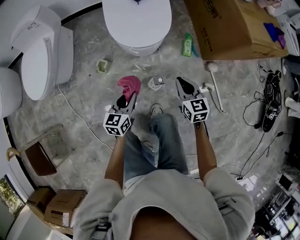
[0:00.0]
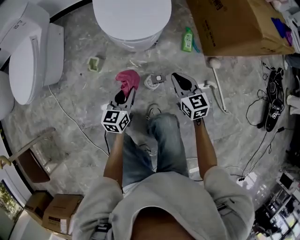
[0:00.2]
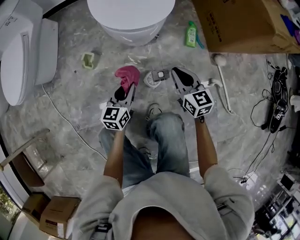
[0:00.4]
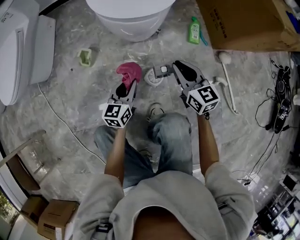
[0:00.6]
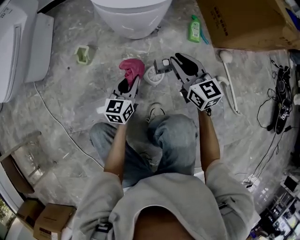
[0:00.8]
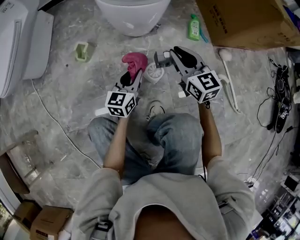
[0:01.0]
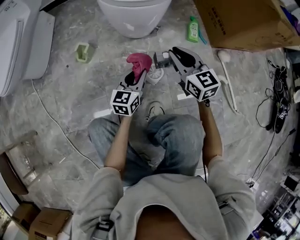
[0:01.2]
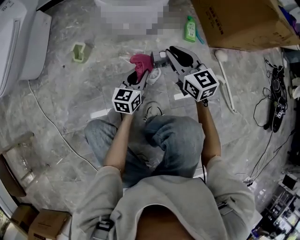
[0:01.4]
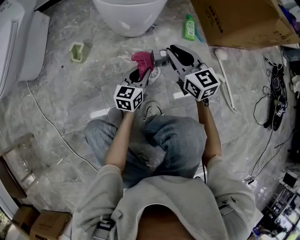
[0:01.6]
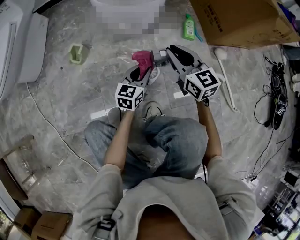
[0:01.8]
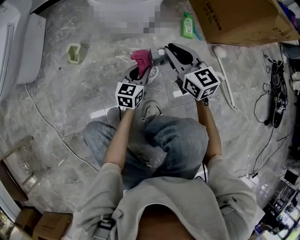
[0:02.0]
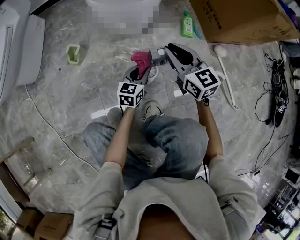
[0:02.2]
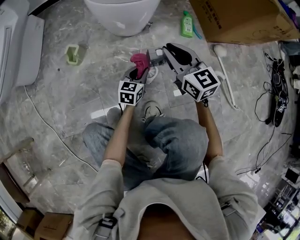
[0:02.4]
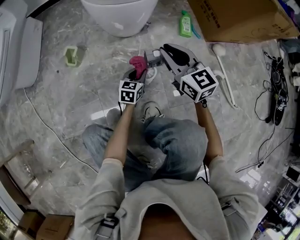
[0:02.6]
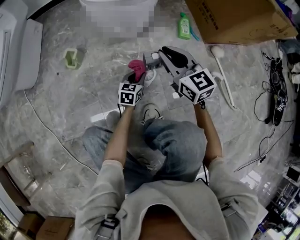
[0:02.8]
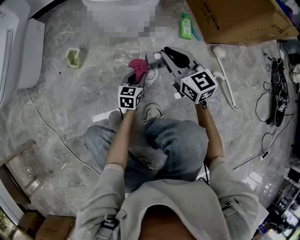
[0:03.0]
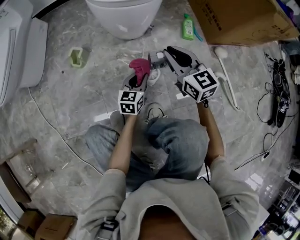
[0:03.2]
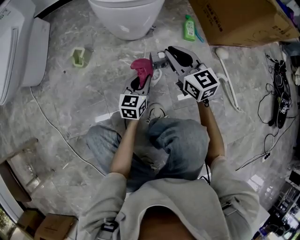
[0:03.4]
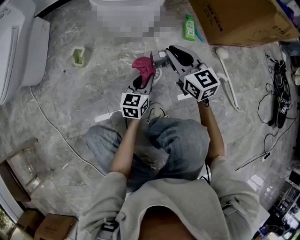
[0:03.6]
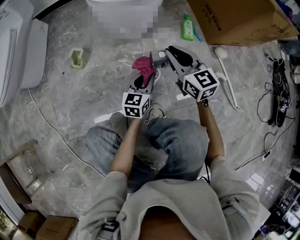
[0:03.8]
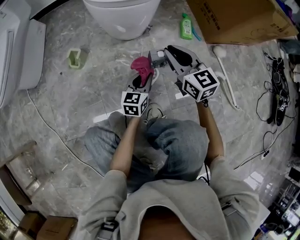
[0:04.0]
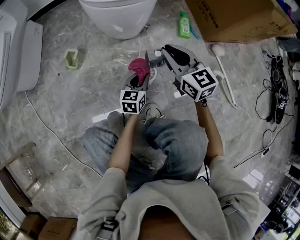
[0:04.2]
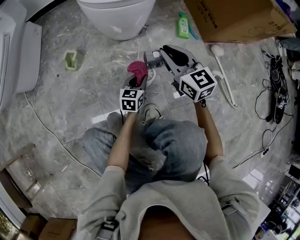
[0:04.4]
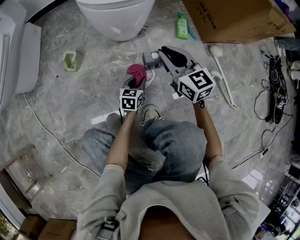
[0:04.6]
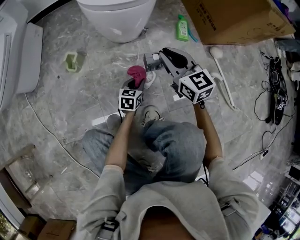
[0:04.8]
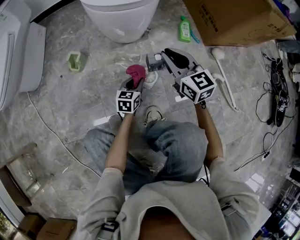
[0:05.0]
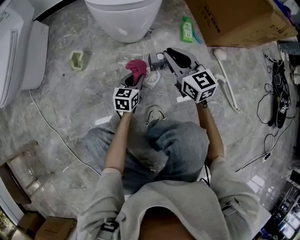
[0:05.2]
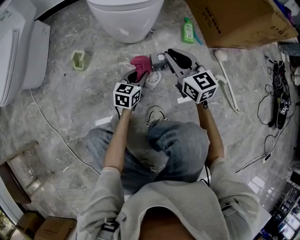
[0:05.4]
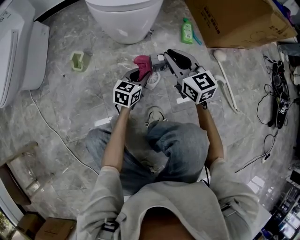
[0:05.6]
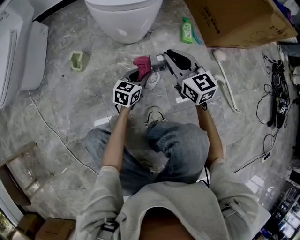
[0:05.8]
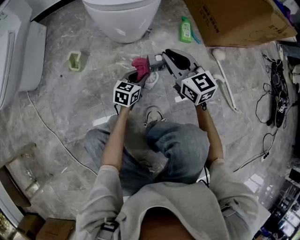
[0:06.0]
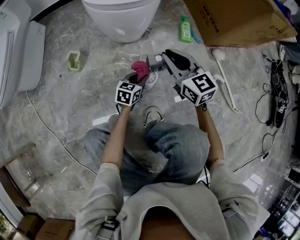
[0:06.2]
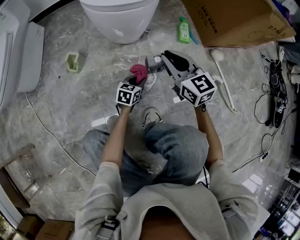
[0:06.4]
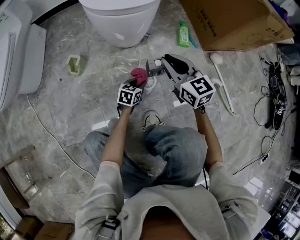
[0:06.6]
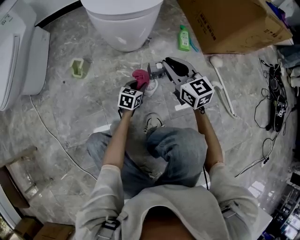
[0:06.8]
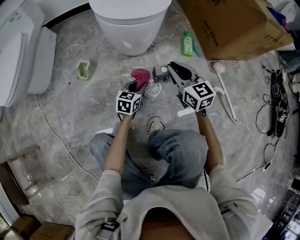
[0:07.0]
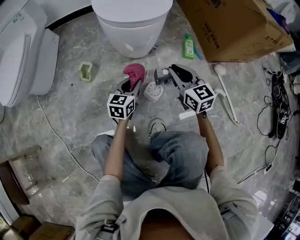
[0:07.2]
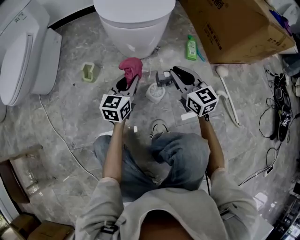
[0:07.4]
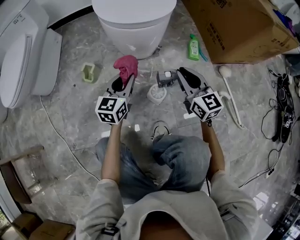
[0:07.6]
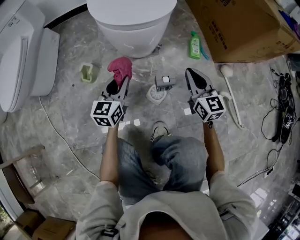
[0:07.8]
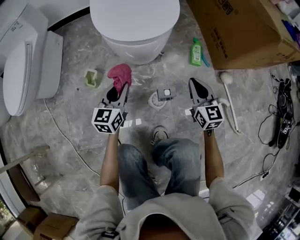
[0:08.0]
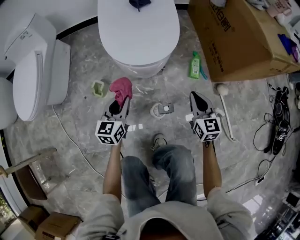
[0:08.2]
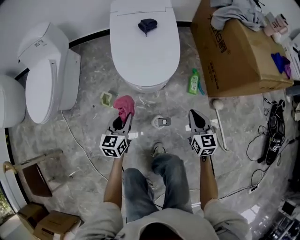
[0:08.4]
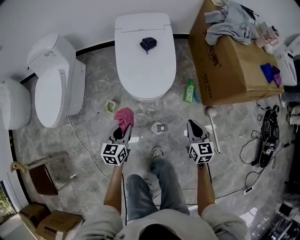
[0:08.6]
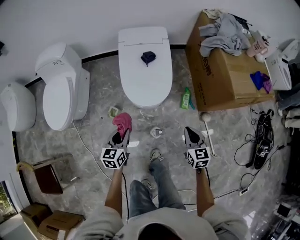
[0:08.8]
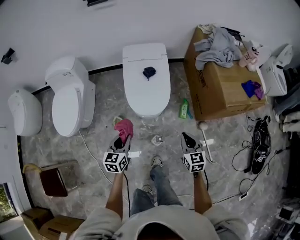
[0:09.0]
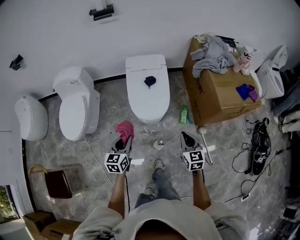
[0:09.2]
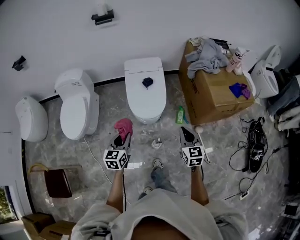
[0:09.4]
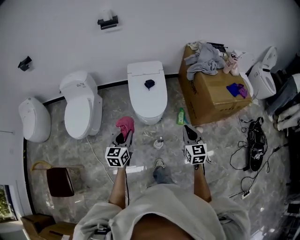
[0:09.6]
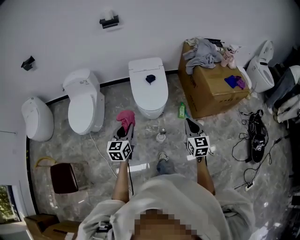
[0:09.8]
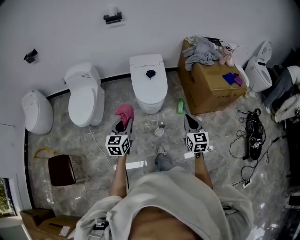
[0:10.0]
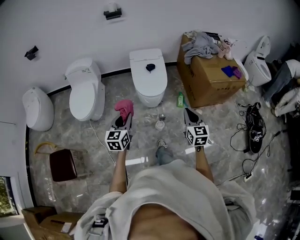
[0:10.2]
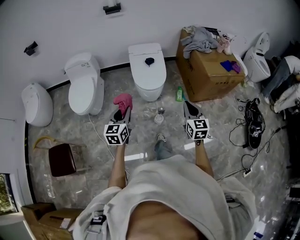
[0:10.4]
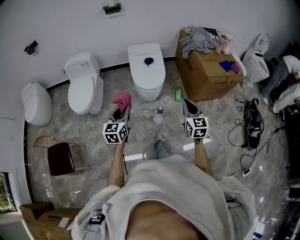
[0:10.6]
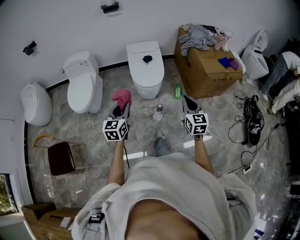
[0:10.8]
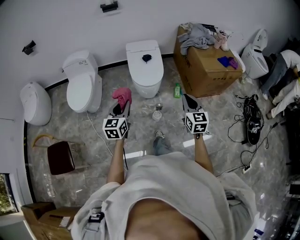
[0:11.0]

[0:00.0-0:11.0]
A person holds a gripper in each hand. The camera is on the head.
0:00.0 to 0:01.6: The left gripper is displaced downward by approximately 25 cm, while the right gripper heads downward, covering some 15 cm.
0:03.2 to 0:04.8: The left gripper travels downward by roughly 10 cm.
0:04.8 to 0:06.2: The left gripper goes upward and returns, about 10 cm each way.
0:06.2 to 0:07.8: The left gripper goes about 20 cm upward and to the left, and changes its angle by approximately 30 degrees, while the right gripper shifts approximately 5 cm to the right.
0:07.8 to 0:09.4: Both grippers travel together upward, about 50 cm.
0:09.4 to 0:11.0: Both grippers travel together backward and upward, some 20 cm.

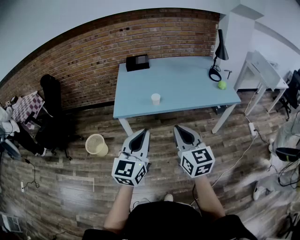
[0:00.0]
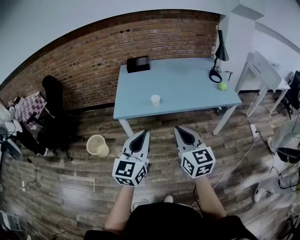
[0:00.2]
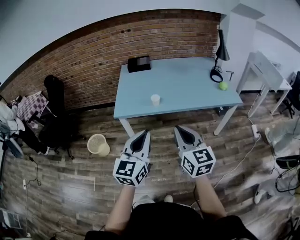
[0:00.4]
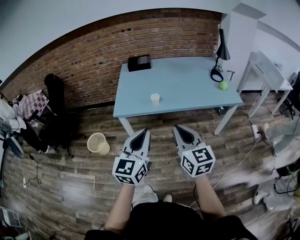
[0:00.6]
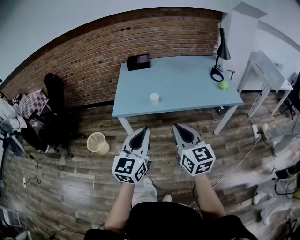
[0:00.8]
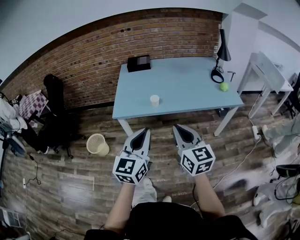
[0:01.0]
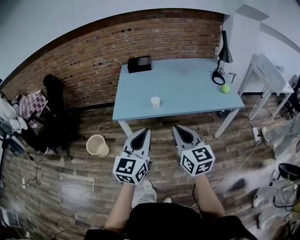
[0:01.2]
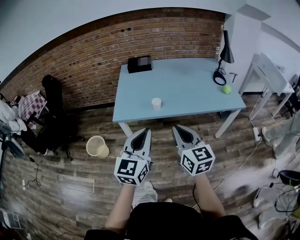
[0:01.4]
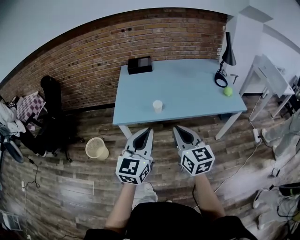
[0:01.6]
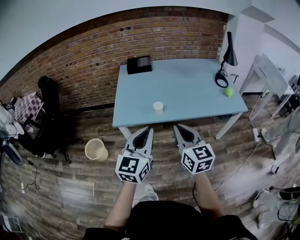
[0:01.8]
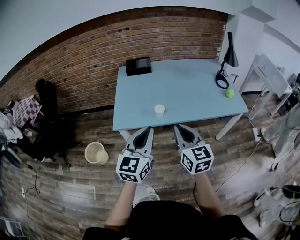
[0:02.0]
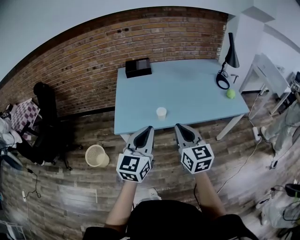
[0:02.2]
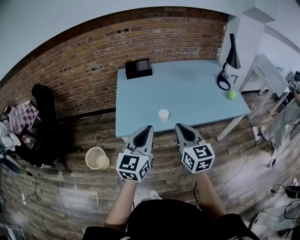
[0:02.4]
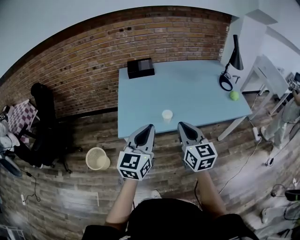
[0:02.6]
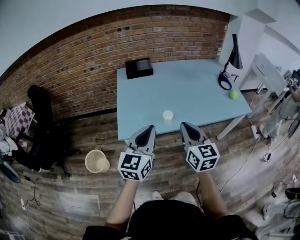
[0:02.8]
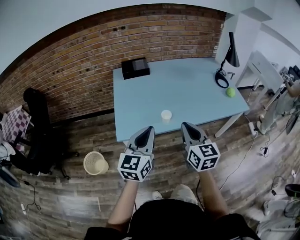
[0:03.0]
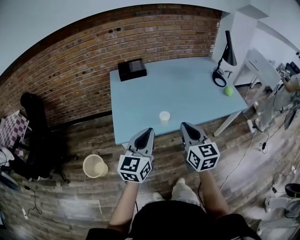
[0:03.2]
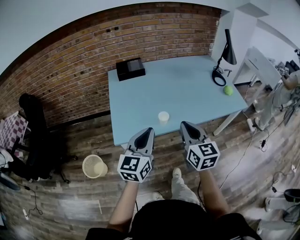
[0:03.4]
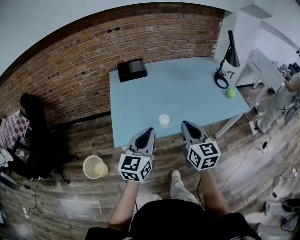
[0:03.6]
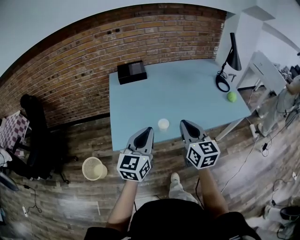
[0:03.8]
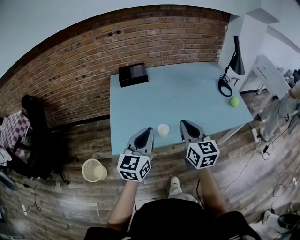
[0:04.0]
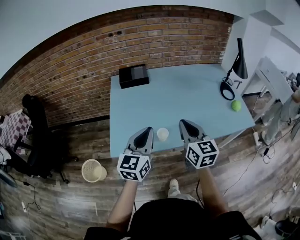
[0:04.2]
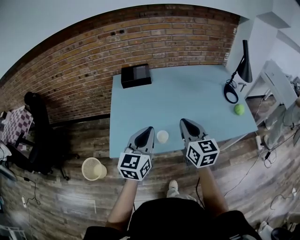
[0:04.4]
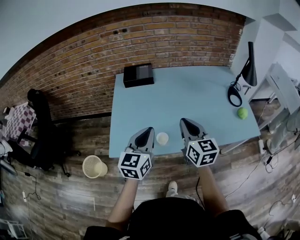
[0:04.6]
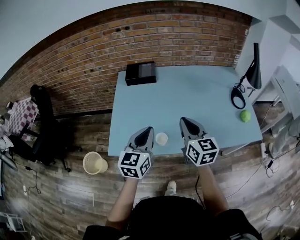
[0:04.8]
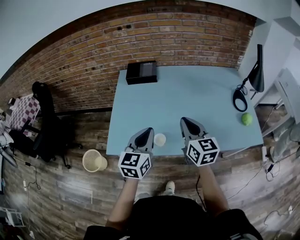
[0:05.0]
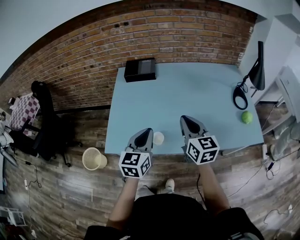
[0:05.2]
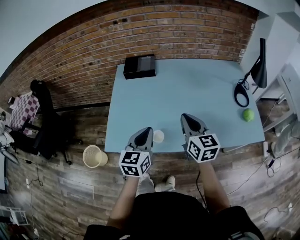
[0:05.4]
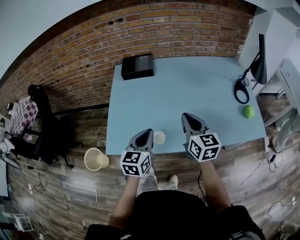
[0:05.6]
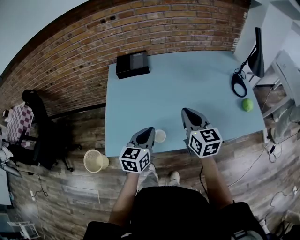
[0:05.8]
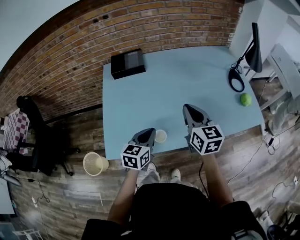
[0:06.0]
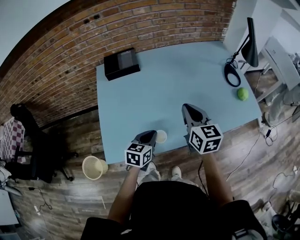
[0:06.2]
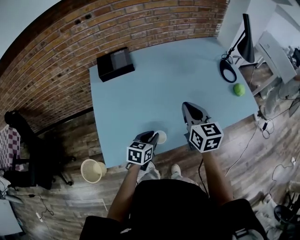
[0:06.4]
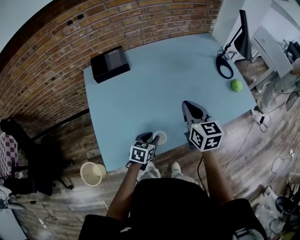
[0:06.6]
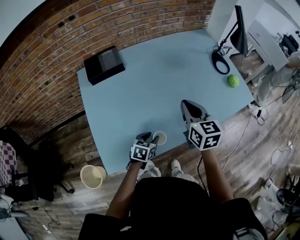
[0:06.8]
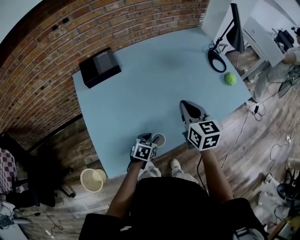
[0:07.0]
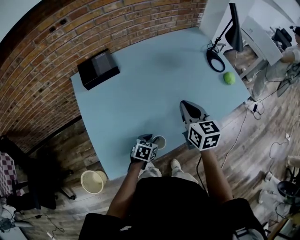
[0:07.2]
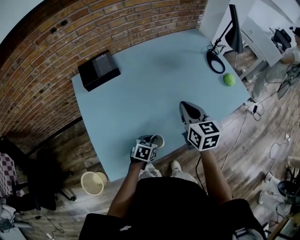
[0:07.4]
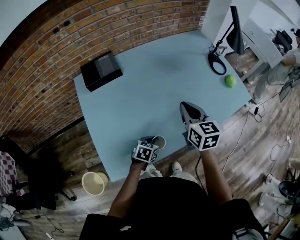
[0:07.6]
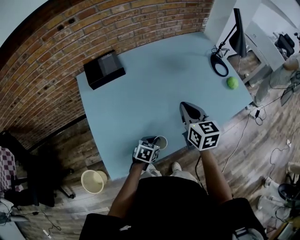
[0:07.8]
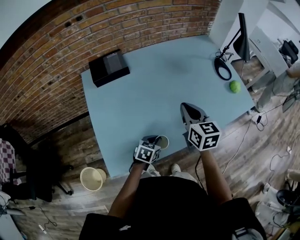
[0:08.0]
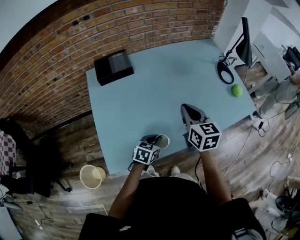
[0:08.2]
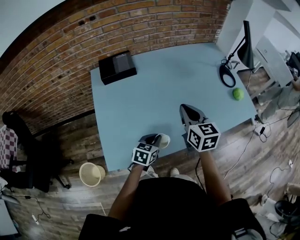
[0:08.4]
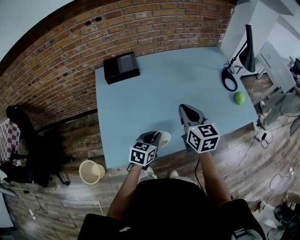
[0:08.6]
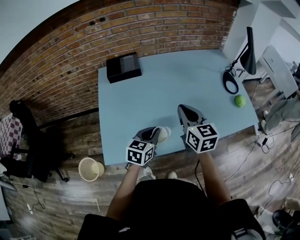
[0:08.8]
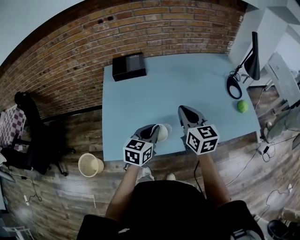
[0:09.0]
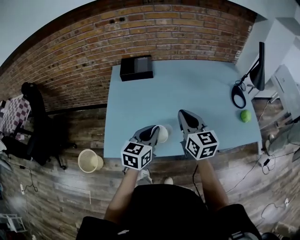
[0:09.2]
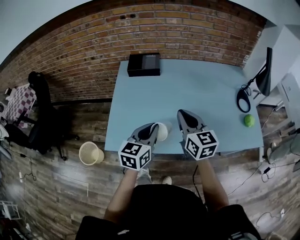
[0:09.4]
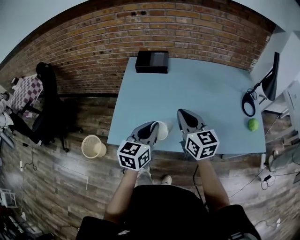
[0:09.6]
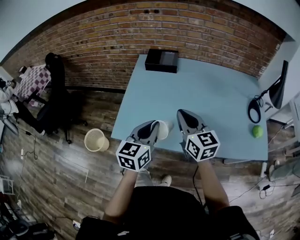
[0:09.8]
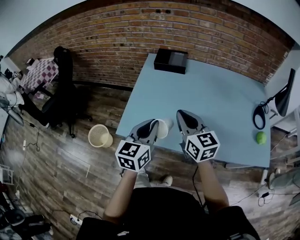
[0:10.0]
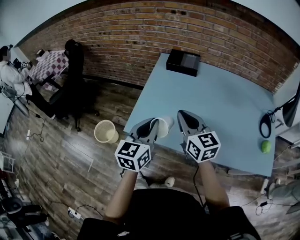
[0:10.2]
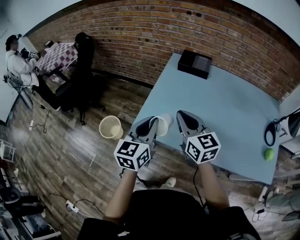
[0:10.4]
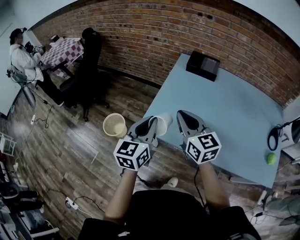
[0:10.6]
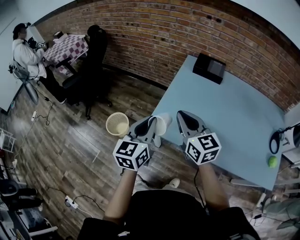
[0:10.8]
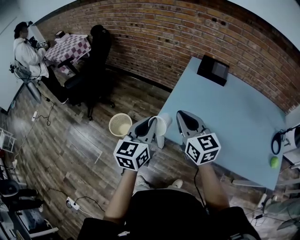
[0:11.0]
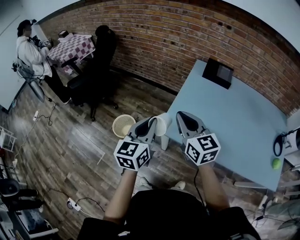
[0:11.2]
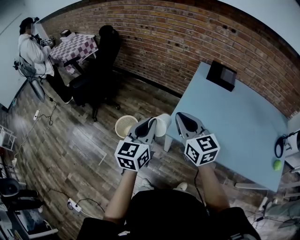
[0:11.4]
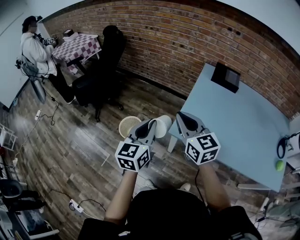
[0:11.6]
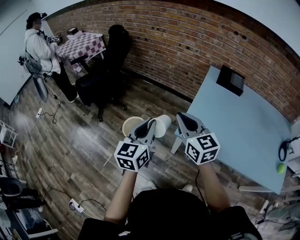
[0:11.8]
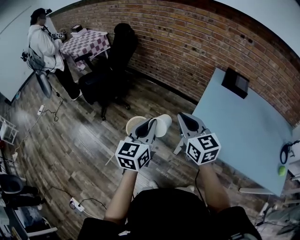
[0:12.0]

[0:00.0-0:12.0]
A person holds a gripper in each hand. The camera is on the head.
0:00.0 to 0:01.6: The grippers both shift forward by some 10 cm.
0:01.6 to 0:03.0: Both grippers travel together forward and to the left, about 20 cm.
0:03.0 to 0:04.4: Both grippers travel together forward, roughly 15 cm.
0:04.4 to 0:06.0: The left gripper goes approximately 15 cm downward and forward, and turns by roughly 20 degrees. The right gripper travels forward by approximately 10 cm.
0:06.0 to 0:07.6: The right gripper ends up approximately 5 cm from where it was, while the left gripper shifts approximately 20 cm downward, rotates some 40 degrees, and opens, then closes again.
0:07.6 to 0:09.0: The right gripper is displaced upward by about 5 cm, and rotates approximately 20 degrees. The left gripper goes some 20 cm upward, and changes its angle by about 40 degrees.
0:09.0 to 0:10.4: The right gripper shifts by roughly 20 cm, and swivels roughly 40 degrees, while the left gripper changes place by about 20 cm, and changes its angle by approximately 40 degrees.
0:10.4 to 0:12.0: The two grippers go approximately 35 cm to the left.

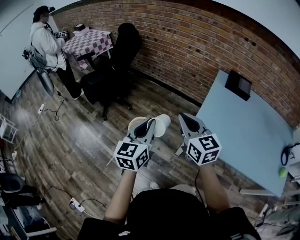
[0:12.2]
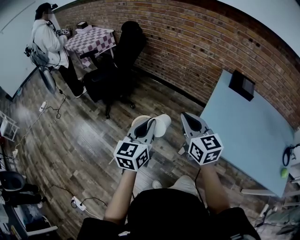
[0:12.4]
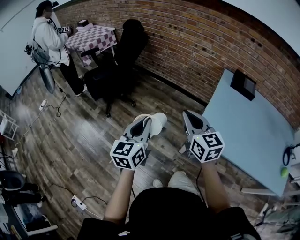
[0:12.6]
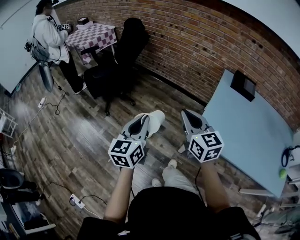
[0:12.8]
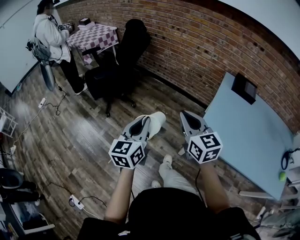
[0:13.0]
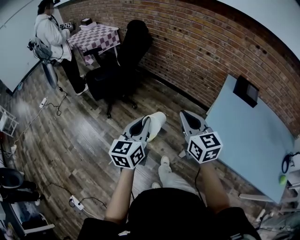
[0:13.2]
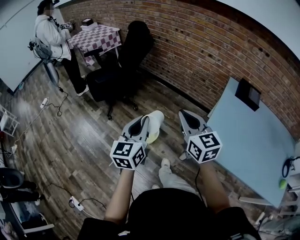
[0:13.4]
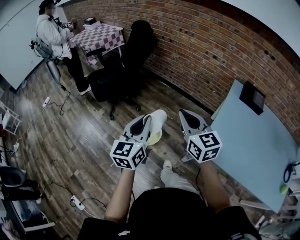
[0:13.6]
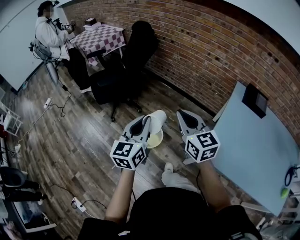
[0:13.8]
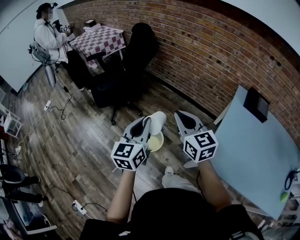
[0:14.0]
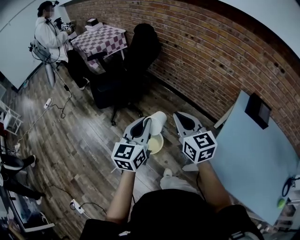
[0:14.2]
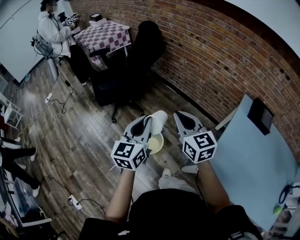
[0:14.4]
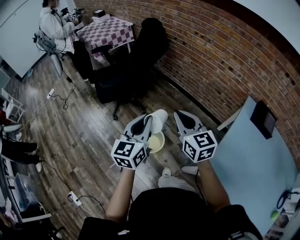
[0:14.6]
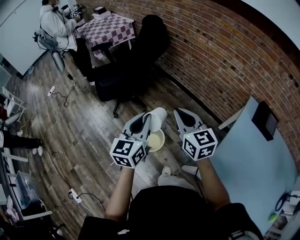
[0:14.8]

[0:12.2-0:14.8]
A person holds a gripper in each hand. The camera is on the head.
0:12.2 to 0:13.4: The right gripper travels forward and to the left by roughly 10 cm, while the left gripper travels to the left and forward by some 10 cm.
0:13.4 to 0:14.8: Both grippers travel together forward, about 20 cm.
